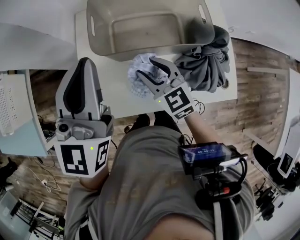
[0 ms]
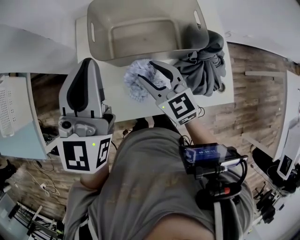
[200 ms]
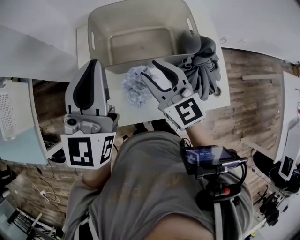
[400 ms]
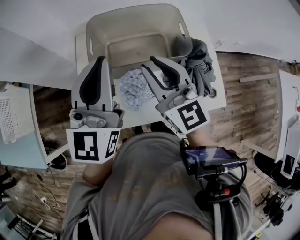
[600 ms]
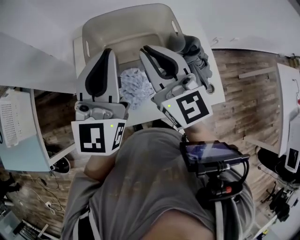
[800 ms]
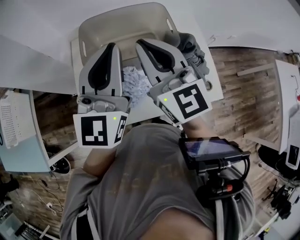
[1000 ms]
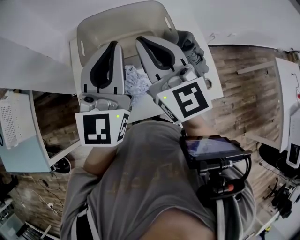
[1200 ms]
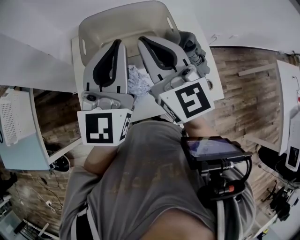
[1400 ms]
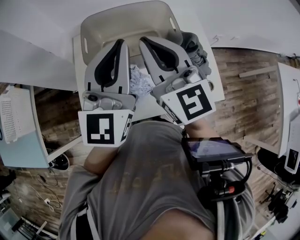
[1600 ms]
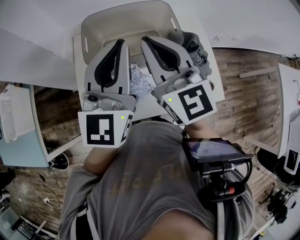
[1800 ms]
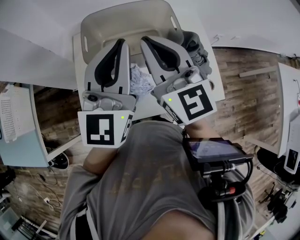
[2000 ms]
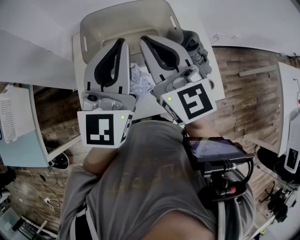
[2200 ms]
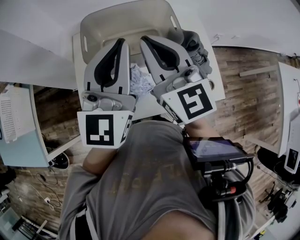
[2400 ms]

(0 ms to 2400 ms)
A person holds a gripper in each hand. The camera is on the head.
0 ms - 1200 ms: The left gripper heads to the right, covering about 10 cm. Meanwhile the right gripper is displaced upward by about 25 cm, swivels some 30 degrees, and closes its fingers.
1200 ms - 2400 ms: The two grippers keep their place.

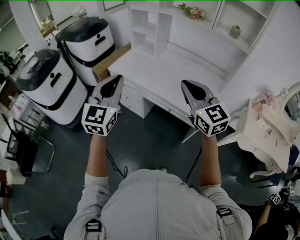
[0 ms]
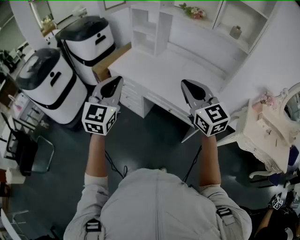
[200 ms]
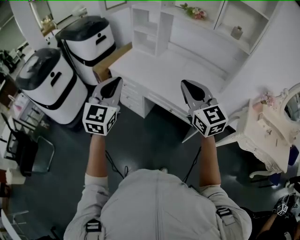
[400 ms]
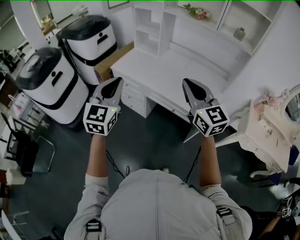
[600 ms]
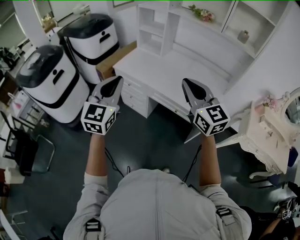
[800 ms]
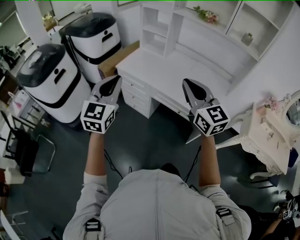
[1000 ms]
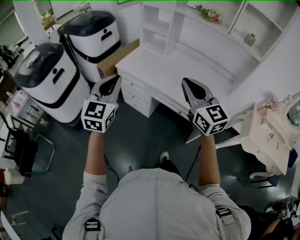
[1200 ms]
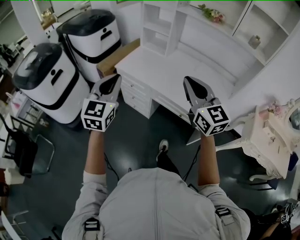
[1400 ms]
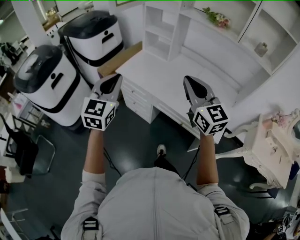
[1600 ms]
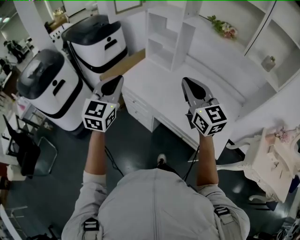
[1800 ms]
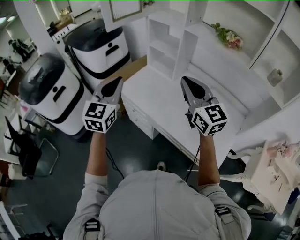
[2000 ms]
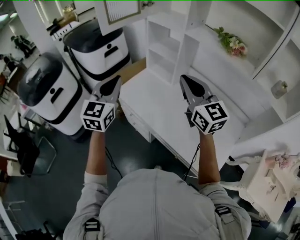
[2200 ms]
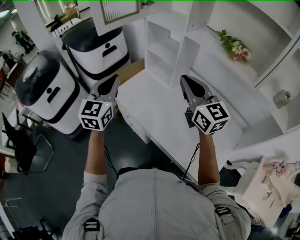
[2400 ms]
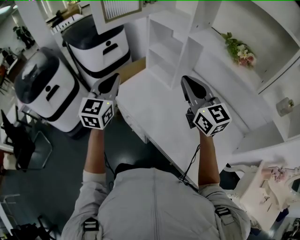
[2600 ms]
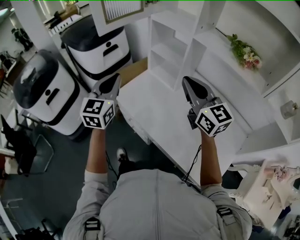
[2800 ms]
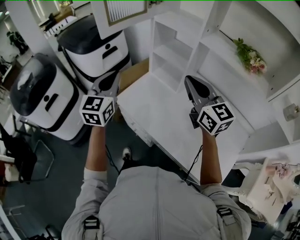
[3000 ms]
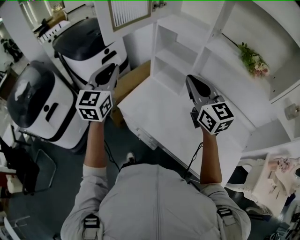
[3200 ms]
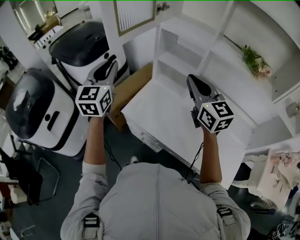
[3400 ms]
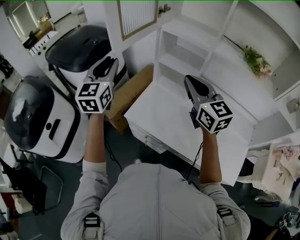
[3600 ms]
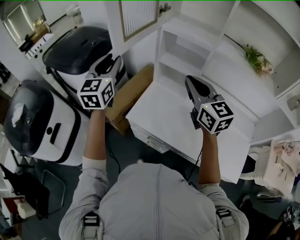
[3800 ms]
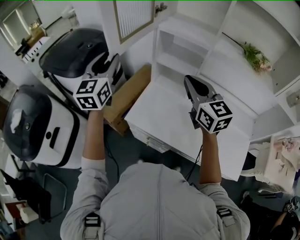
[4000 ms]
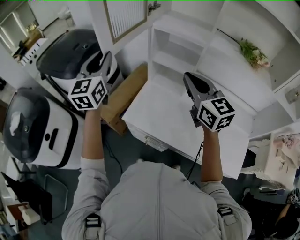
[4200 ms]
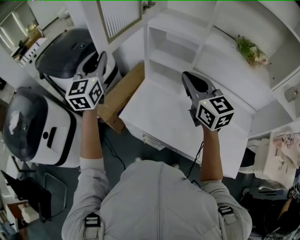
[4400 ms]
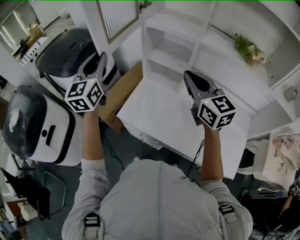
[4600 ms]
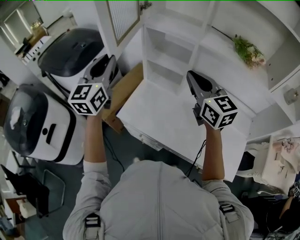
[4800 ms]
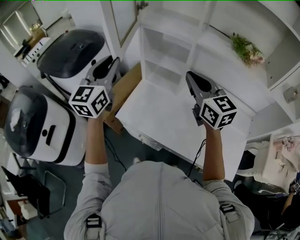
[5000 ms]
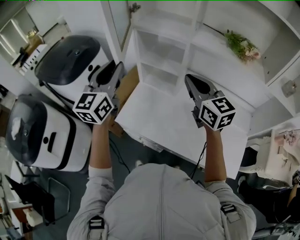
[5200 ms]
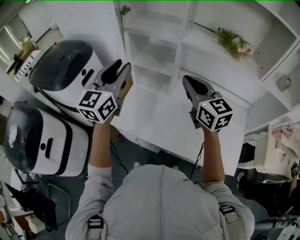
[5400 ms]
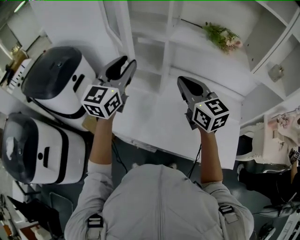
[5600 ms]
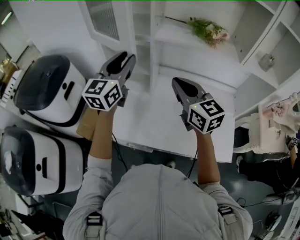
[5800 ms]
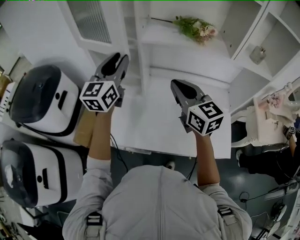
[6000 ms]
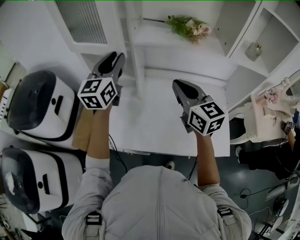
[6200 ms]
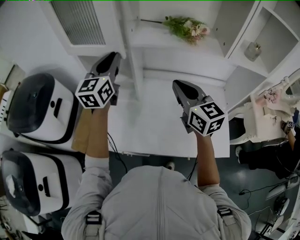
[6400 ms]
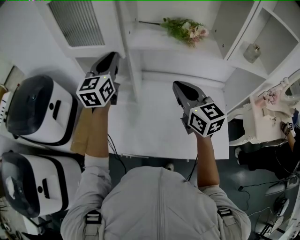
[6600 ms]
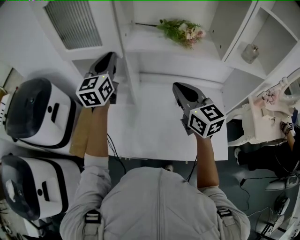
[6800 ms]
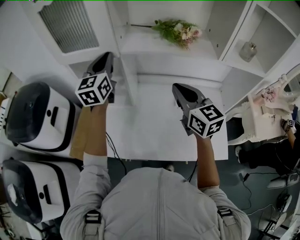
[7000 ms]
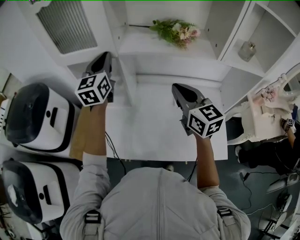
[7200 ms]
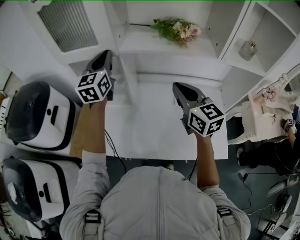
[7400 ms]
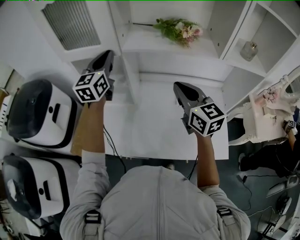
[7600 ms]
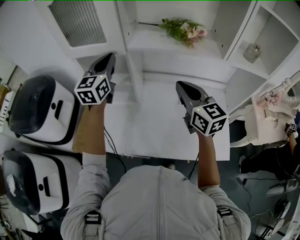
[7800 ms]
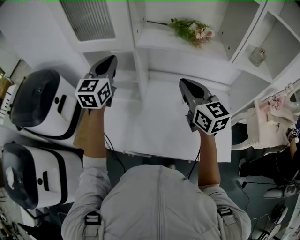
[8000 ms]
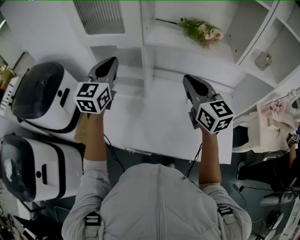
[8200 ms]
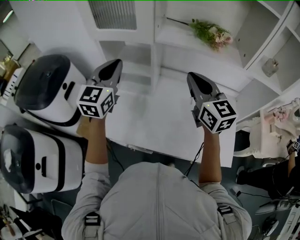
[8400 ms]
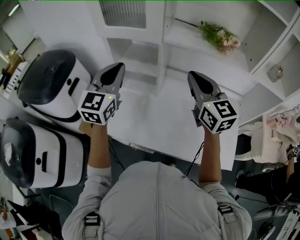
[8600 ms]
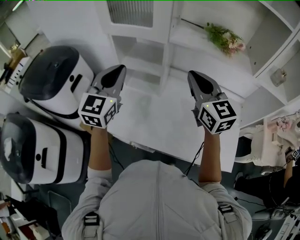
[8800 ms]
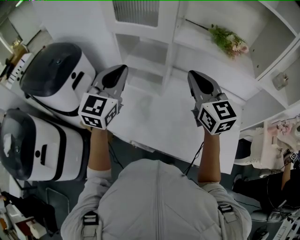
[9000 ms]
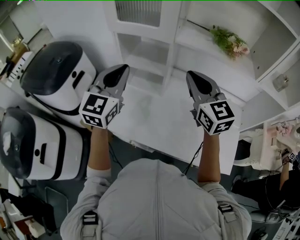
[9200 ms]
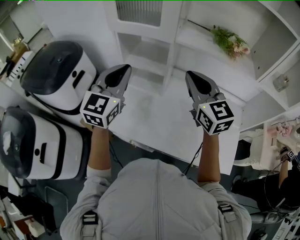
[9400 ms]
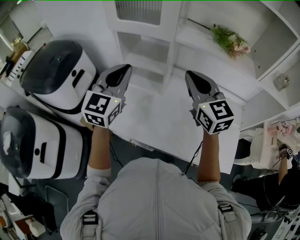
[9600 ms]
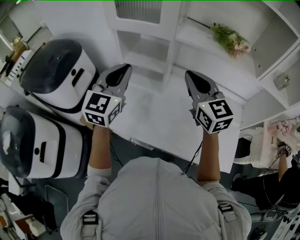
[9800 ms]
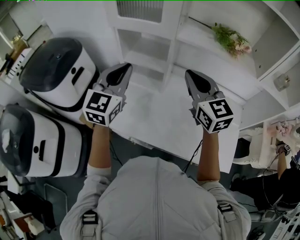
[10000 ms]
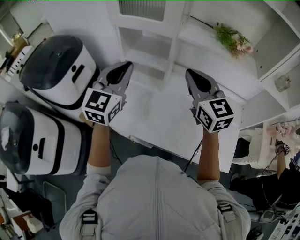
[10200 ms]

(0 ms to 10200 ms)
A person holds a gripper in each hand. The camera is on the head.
0 ms - 1400 ms: Both grippers move forward and to the left, roughly 15 cm.
1400 ms - 3000 ms: Both grippers move forward, some 35 cm.
3000 ms - 4400 ms: The right gripper goes some 10 cm to the left and forward, while the left gripper travels forward, to the left and upward by approximately 20 cm.
4400 ms - 5800 ms: The left gripper shifts about 25 cm to the right, and swivels some 30 degrees; the right gripper shifts some 10 cm to the right.
5800 ms - 7200 ms: The right gripper shifts about 10 cm to the right, while the left gripper travels forward by about 10 cm, and closes.
7200 ms - 8800 ms: The right gripper is displaced to the left by roughly 10 cm, while the left gripper shifts some 20 cm backward and to the left.
8800 ms - 10200 ms: The grippers make only small movements.

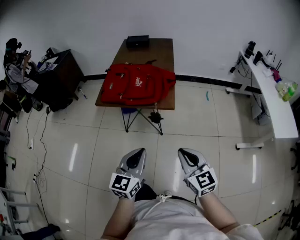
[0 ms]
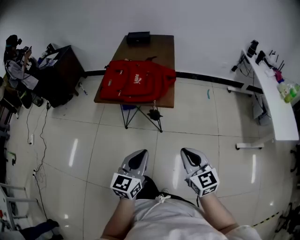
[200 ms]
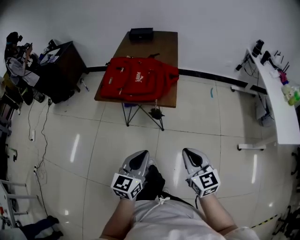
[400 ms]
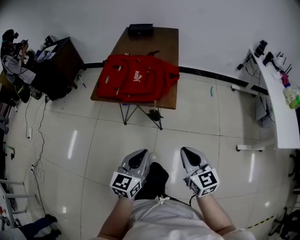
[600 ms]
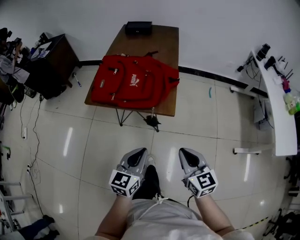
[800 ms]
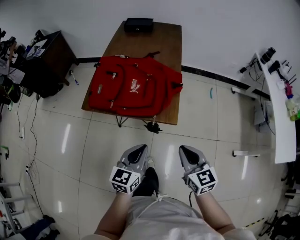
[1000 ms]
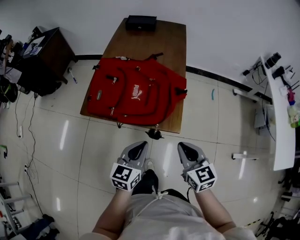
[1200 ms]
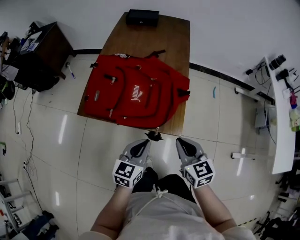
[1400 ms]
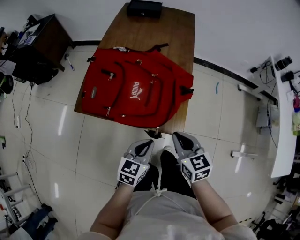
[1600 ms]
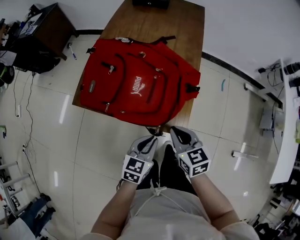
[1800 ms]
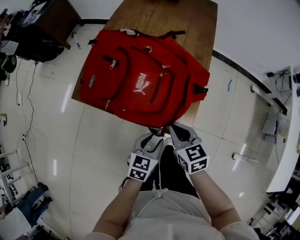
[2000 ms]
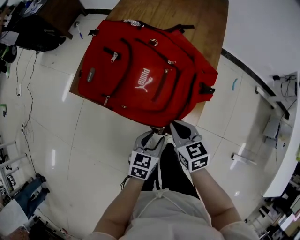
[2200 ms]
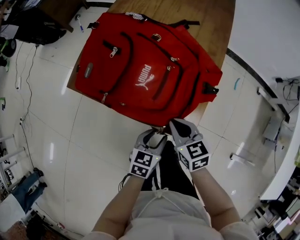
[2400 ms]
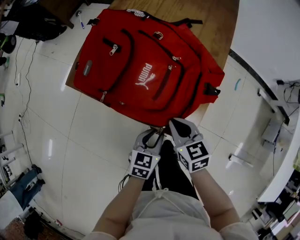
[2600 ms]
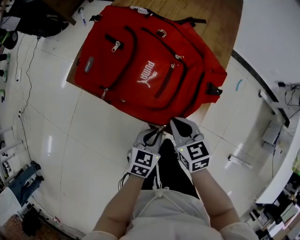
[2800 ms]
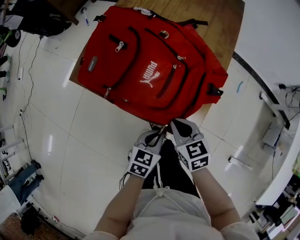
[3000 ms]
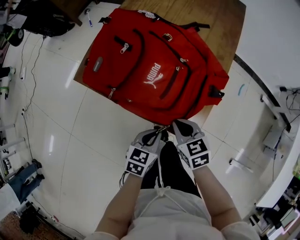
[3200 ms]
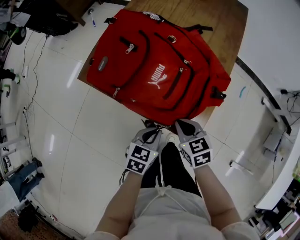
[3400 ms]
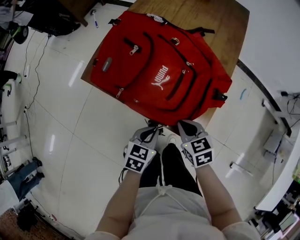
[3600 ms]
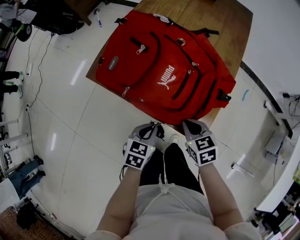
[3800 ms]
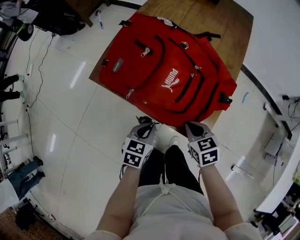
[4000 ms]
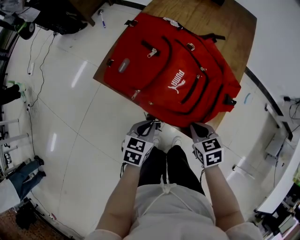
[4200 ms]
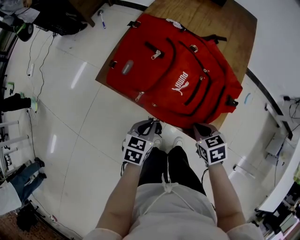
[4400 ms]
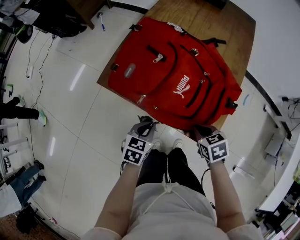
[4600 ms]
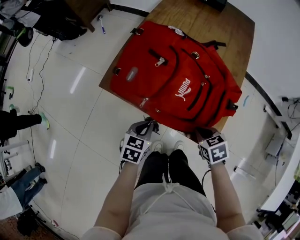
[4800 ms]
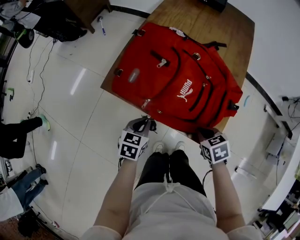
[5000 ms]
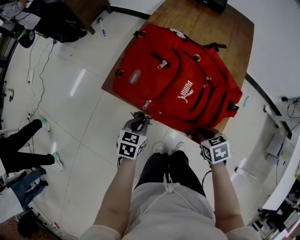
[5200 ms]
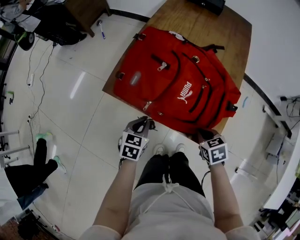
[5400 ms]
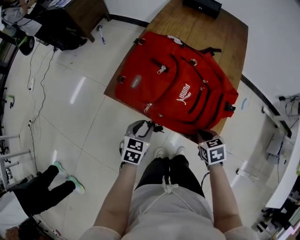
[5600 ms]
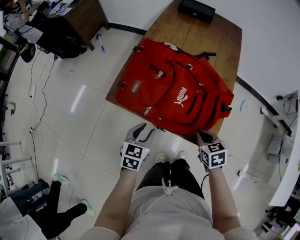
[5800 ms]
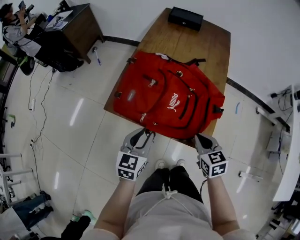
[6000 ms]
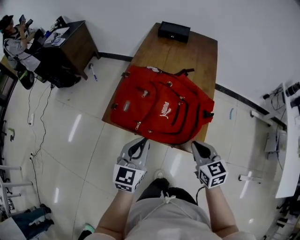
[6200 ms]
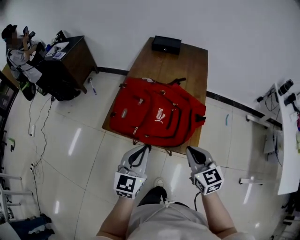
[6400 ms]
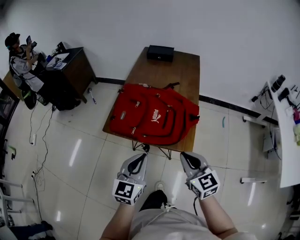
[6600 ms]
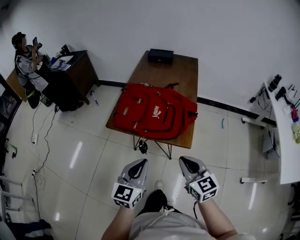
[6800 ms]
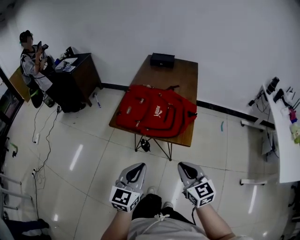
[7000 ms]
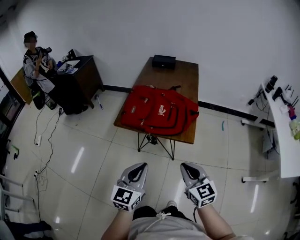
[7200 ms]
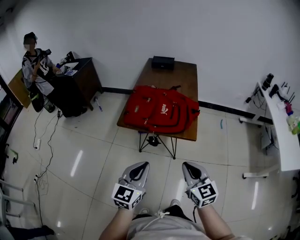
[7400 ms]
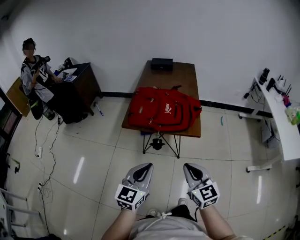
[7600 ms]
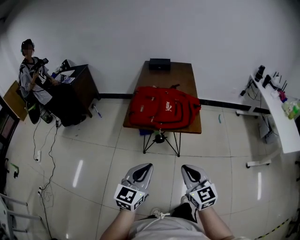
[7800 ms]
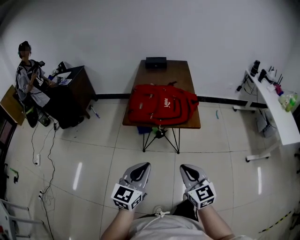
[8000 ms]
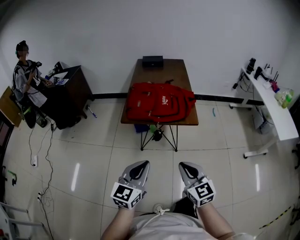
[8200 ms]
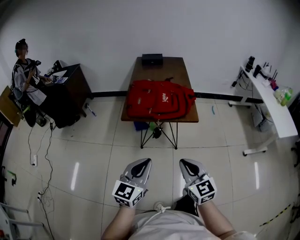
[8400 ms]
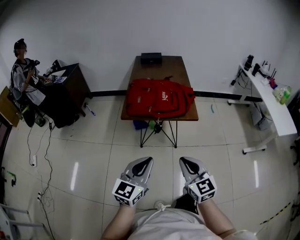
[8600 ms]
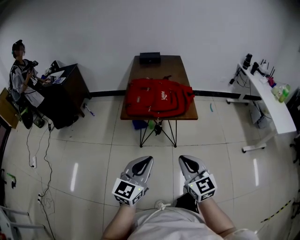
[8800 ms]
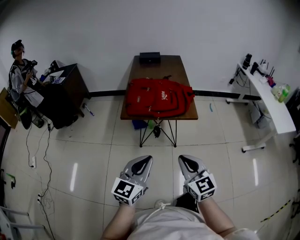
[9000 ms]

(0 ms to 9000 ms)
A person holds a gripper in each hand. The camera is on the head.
0 ms - 1600 ms: The right gripper goes about 35 cm forward, and turns by about 20 degrees. The left gripper goes approximately 35 cm forward and downward, and changes its angle by roughly 20 degrees.
1600 ms - 3000 ms: The right gripper goes approximately 15 cm downward and forward, and turns by roughly 20 degrees; the left gripper is displaced downward by about 10 cm, and opens and closes again.
3000 ms - 4400 ms: The left gripper goes about 15 cm to the left and forward.
4400 ms - 6000 ms: The two grippers go some 10 cm upward. The right gripper rotates roughly 20 degrees. Meanwhile the left gripper changes its angle by some 20 degrees, and opens its fingers.
6000 ms - 7600 ms: Both grippers move backward and upward, about 35 cm. The right gripper turns by roughly 30 degrees, while the left gripper changes its angle by about 20 degrees, and closes.
7600 ms - 9000 ms: The right gripper moves to the left and backward, roughly 10 cm. The left gripper is displaced backward and to the left by about 10 cm.

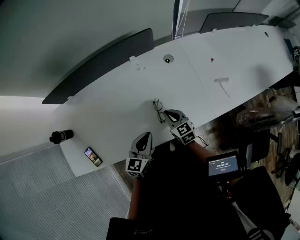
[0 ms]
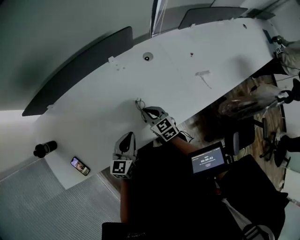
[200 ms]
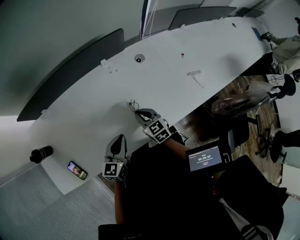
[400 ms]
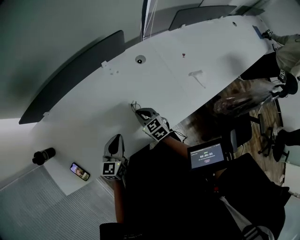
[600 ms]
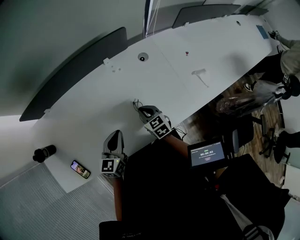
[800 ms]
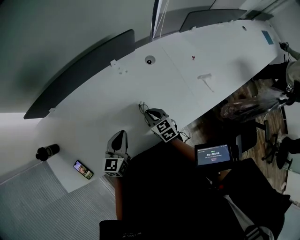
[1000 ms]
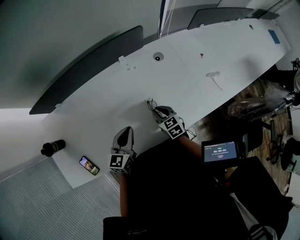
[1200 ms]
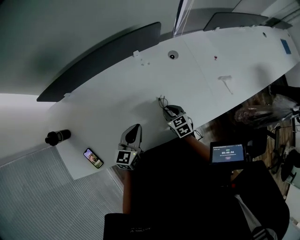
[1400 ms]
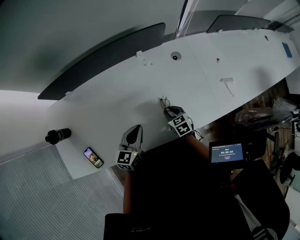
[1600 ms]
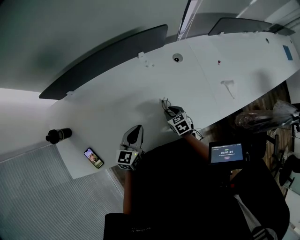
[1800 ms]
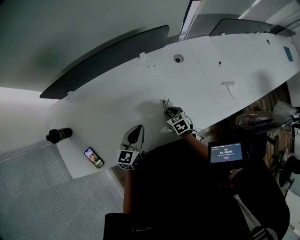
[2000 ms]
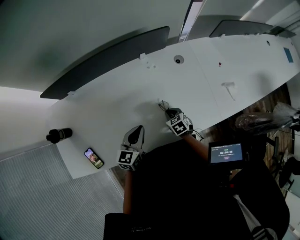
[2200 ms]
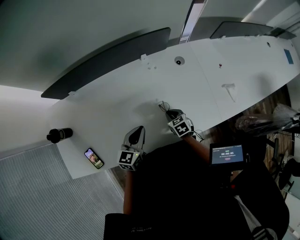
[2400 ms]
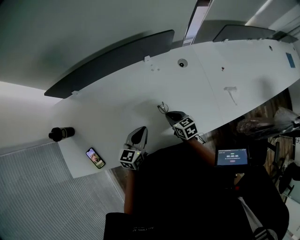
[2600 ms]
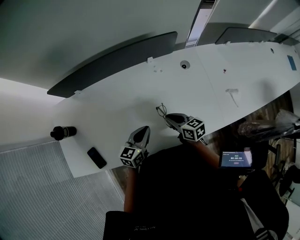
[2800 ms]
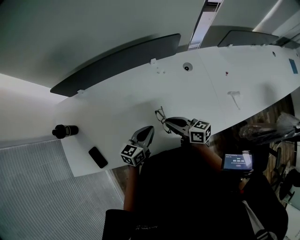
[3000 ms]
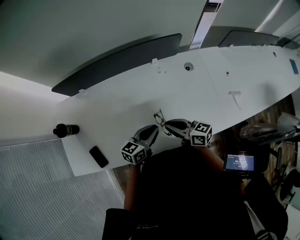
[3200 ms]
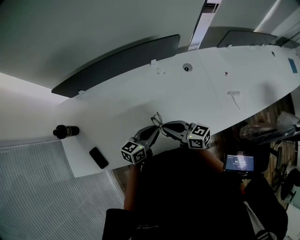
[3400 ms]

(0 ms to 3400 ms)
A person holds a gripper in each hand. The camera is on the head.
0 ms - 1600 ms: The right gripper travels downward and to the left by approximately 10 cm, and opens up. The left gripper is displaced to the left by about 10 cm.
1600 ms - 3400 ms: The right gripper heads upward and to the left, covering roughly 20 cm, and angles its fingers upward, by about 40 degrees; the left gripper rotates some 20 degrees.
